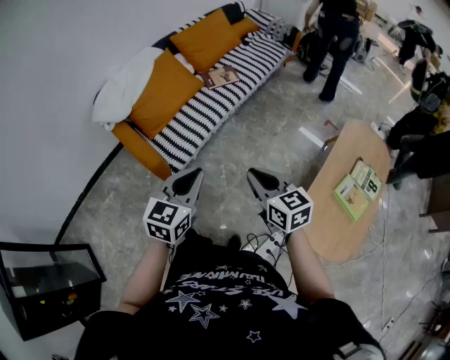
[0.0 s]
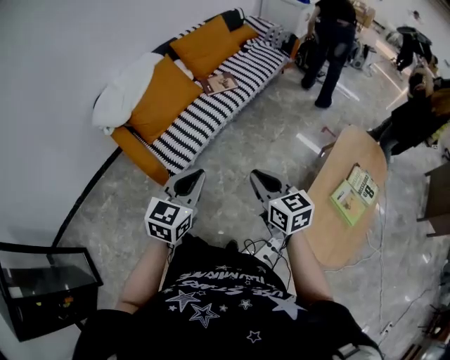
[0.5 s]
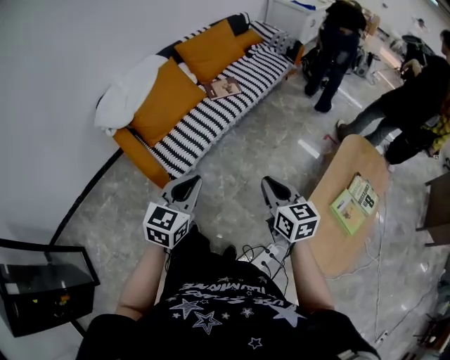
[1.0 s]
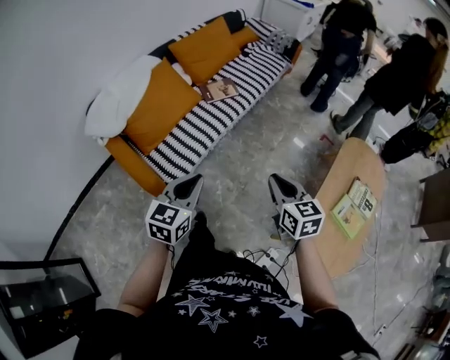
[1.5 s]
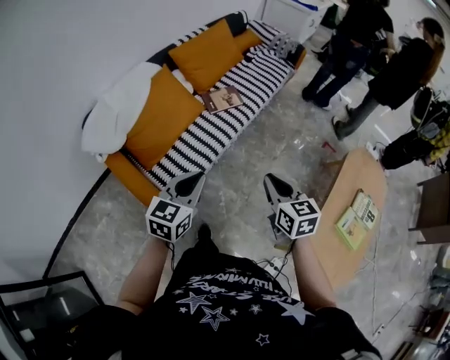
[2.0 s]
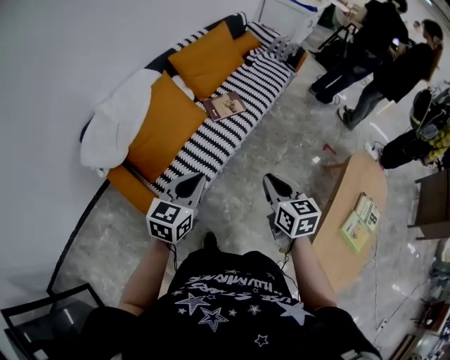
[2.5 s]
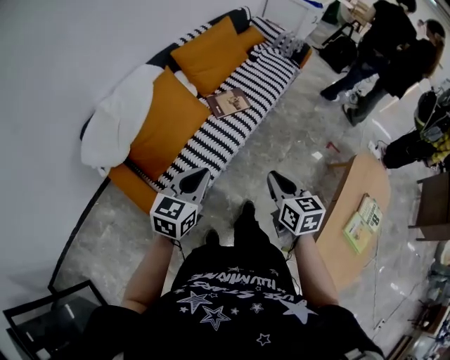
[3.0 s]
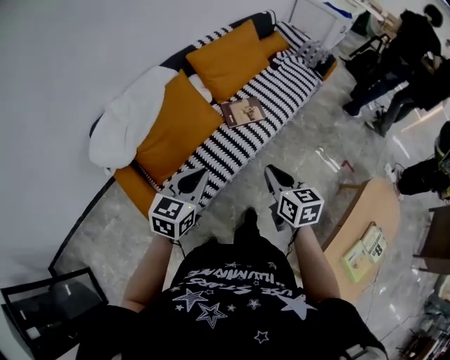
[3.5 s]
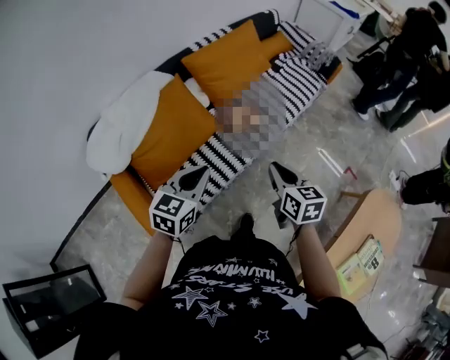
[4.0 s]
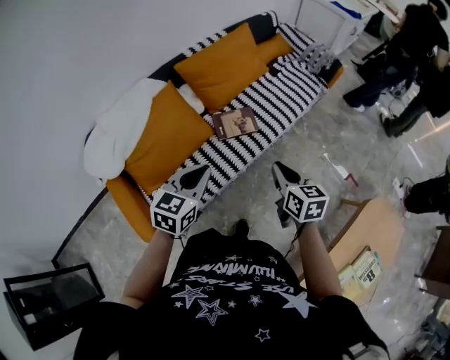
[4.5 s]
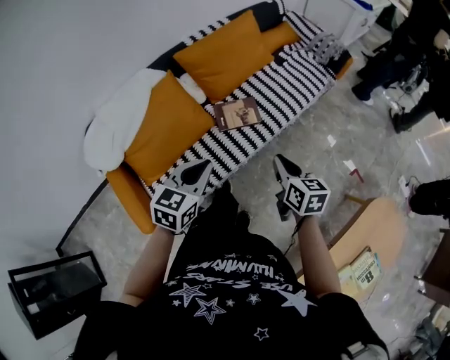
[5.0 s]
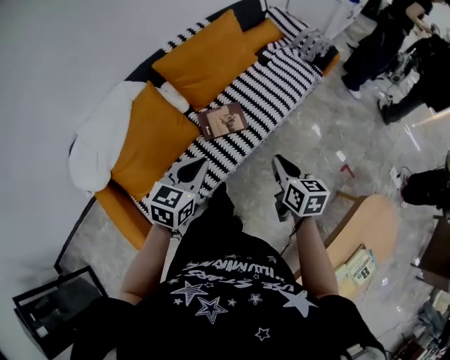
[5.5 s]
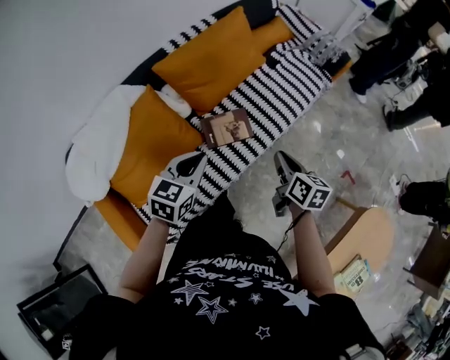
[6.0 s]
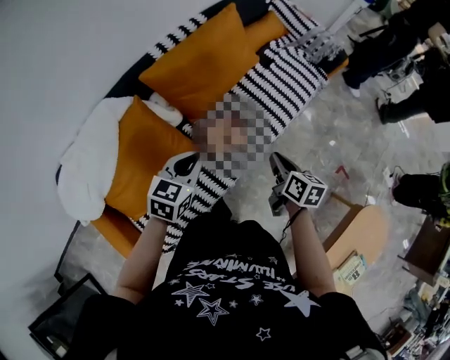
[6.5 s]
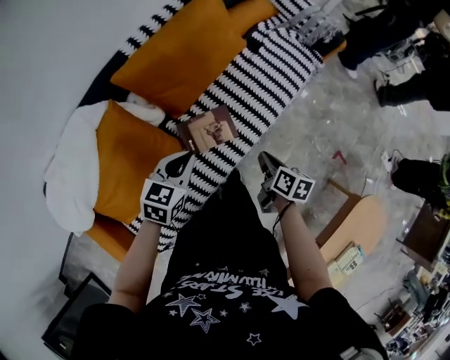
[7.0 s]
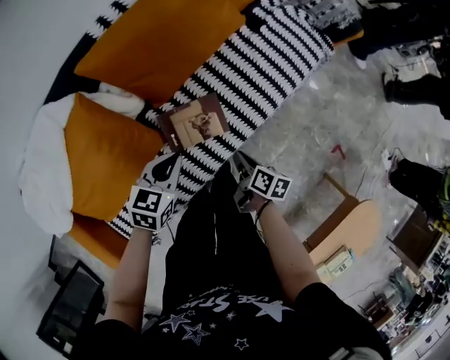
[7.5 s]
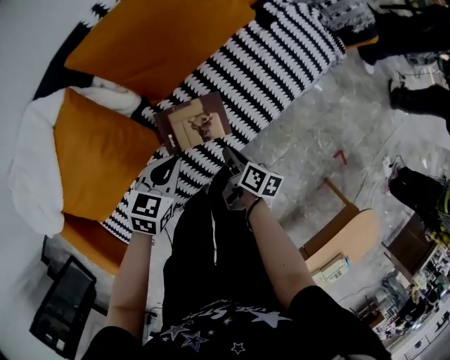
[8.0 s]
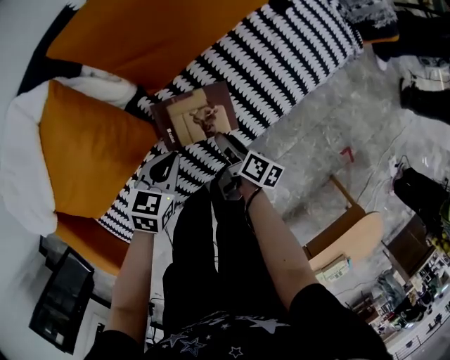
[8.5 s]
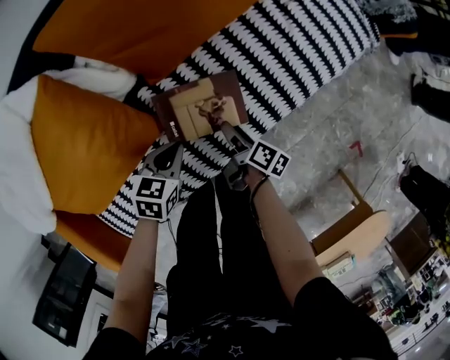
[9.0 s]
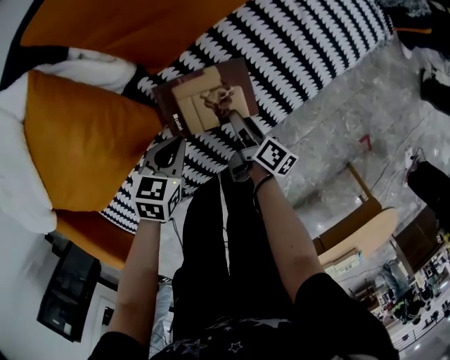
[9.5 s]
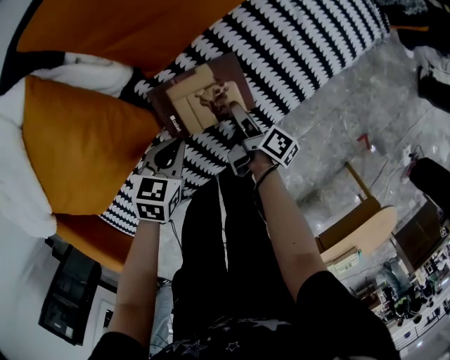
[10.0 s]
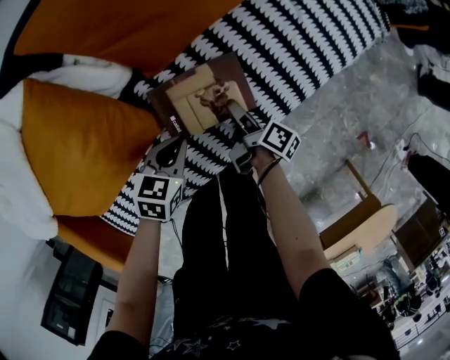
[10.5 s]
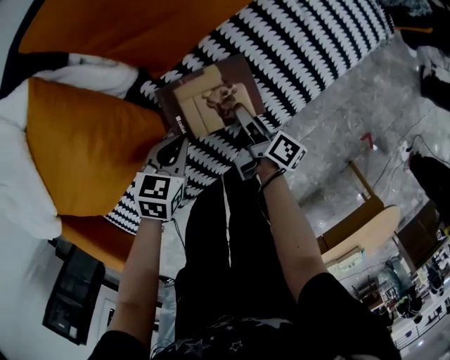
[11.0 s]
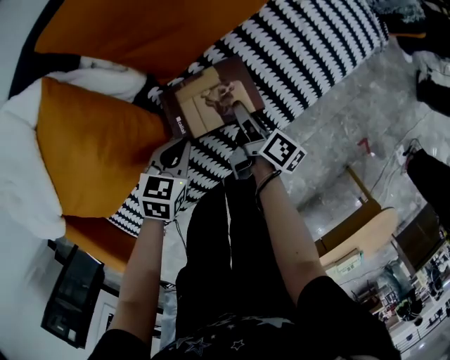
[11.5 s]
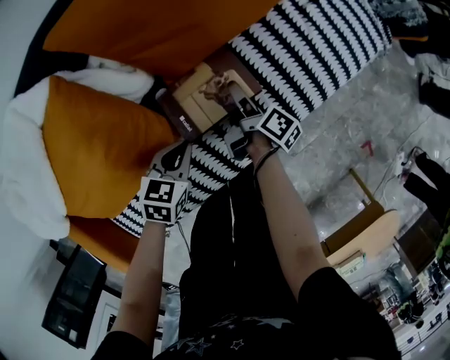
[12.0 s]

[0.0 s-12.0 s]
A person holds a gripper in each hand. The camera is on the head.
0.0 to 2.0 s: Both grippers travel together forward, some 20 cm.
2.0 to 4.0 s: The two grippers go roughly 25 cm forward.
4.0 to 6.0 s: The right gripper shifts some 25 cm forward and to the right, and rotates some 20 degrees. Meanwhile the left gripper shifts some 25 cm forward.
6.0 to 8.0 s: The left gripper moves downward and forward, roughly 25 cm, while the right gripper goes roughly 30 cm downward, and turns by some 30 degrees.
8.0 to 10.0 s: The two grippers go roughly 10 cm downward. The right gripper rotates roughly 20 degrees, and opens its fingers.
10.0 to 12.0 s: The right gripper moves forward and to the left, some 10 cm.

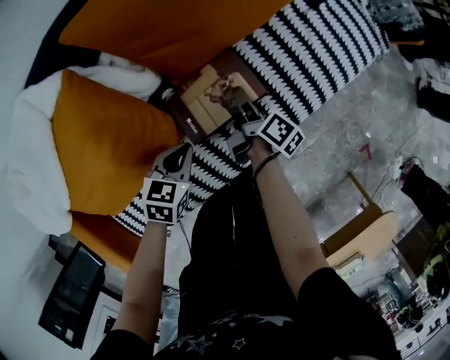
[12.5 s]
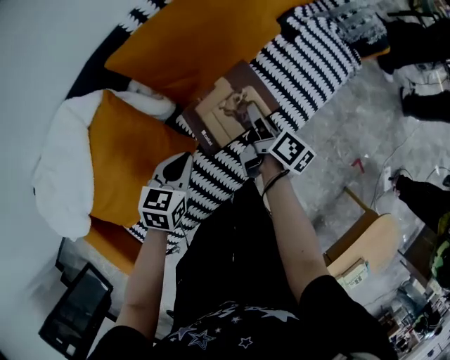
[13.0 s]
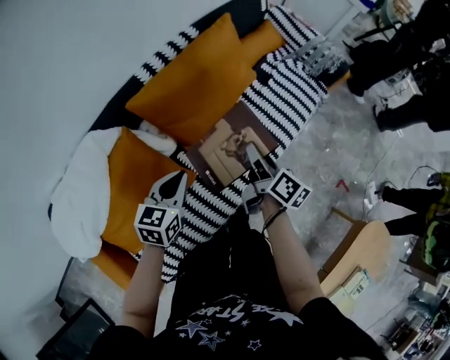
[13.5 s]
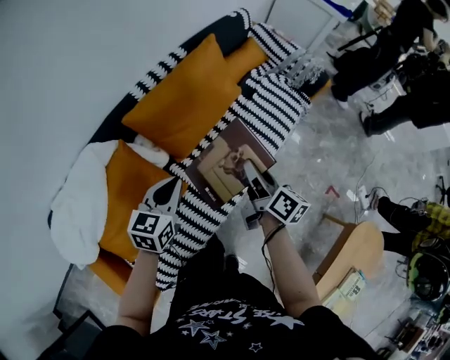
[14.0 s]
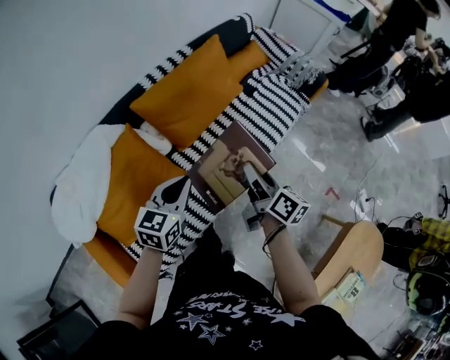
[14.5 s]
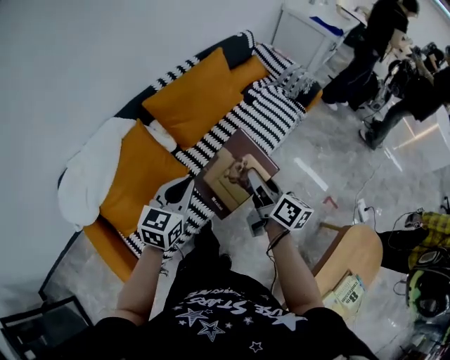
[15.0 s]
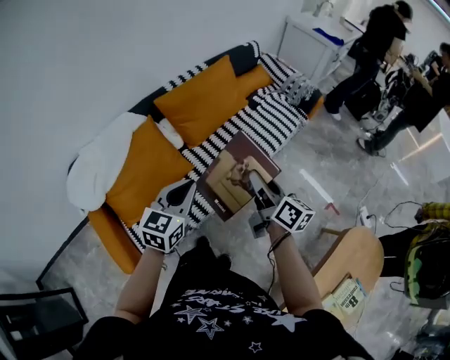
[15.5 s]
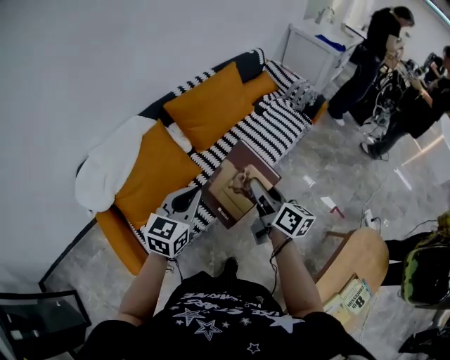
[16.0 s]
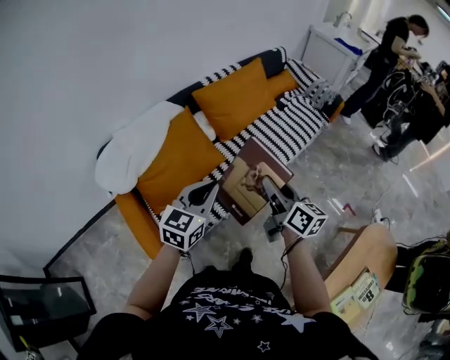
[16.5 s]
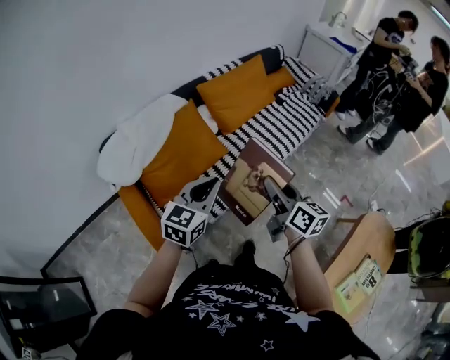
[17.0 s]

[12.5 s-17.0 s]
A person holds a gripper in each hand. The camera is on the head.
12.5 to 14.5 s: Both grippers move upward, approximately 35 cm. The left gripper swivels some 30 degrees. Meanwhile the right gripper swivels about 30 degrees.
14.5 to 17.0 s: Both grippers move backward, about 30 cm. The right gripper changes its angle by roughly 20 degrees.

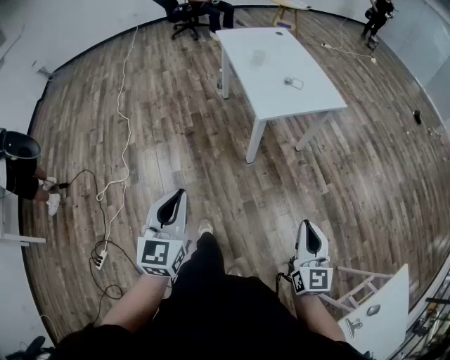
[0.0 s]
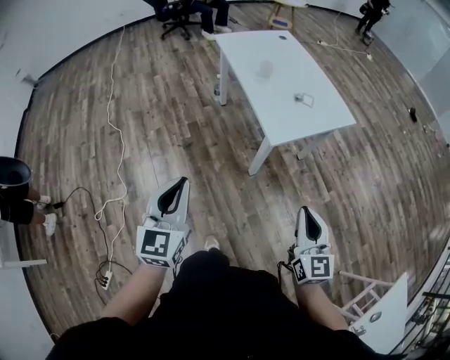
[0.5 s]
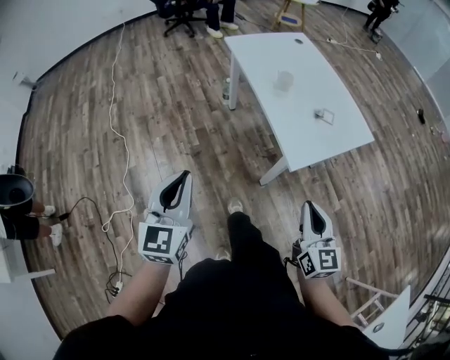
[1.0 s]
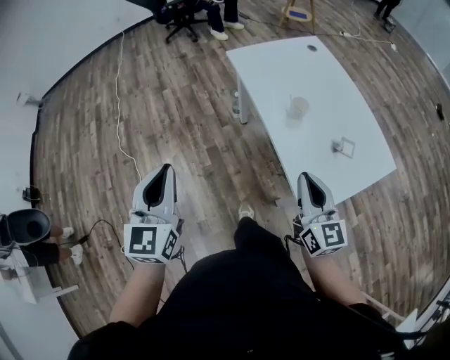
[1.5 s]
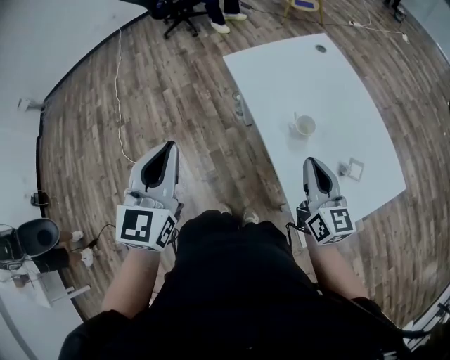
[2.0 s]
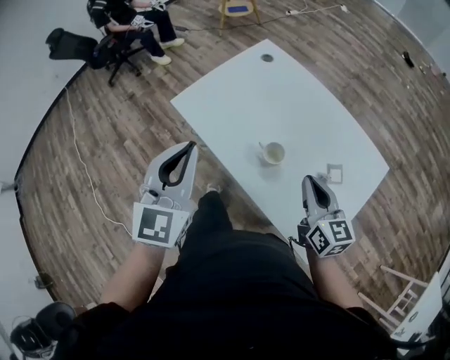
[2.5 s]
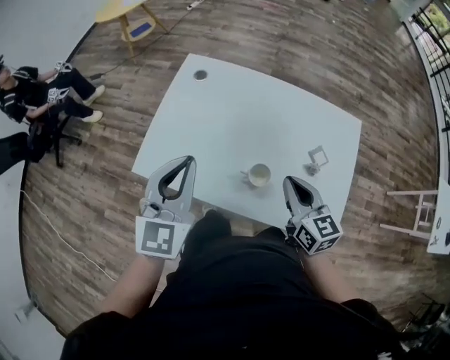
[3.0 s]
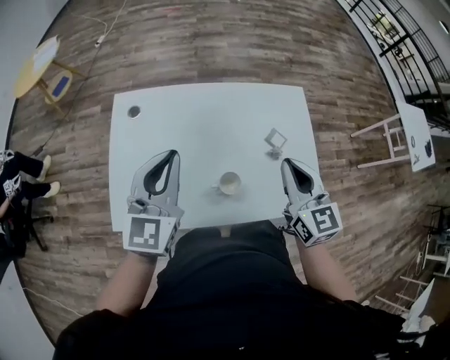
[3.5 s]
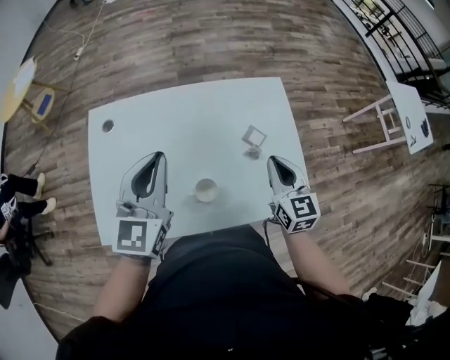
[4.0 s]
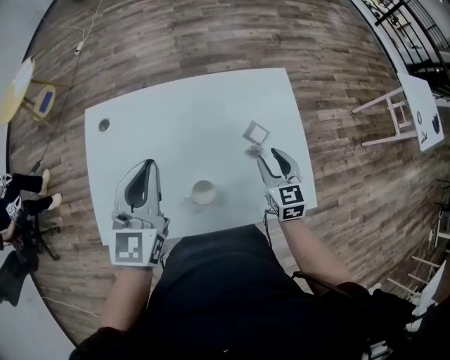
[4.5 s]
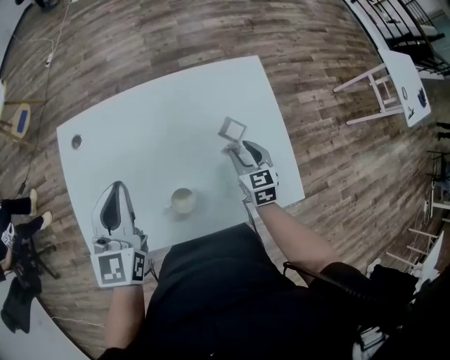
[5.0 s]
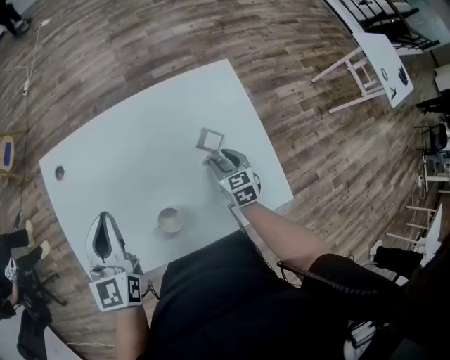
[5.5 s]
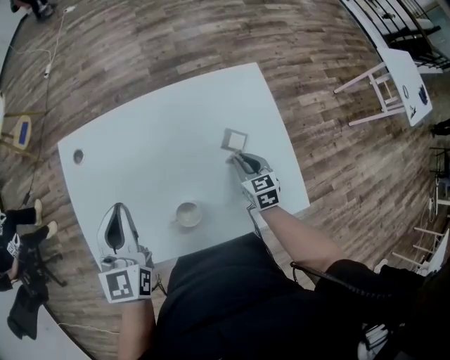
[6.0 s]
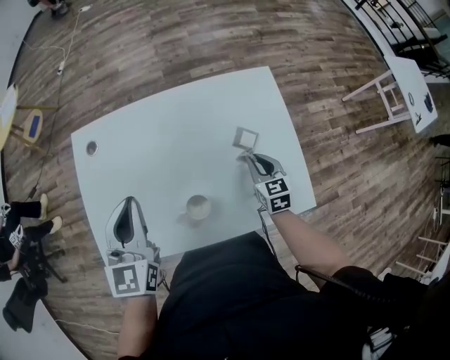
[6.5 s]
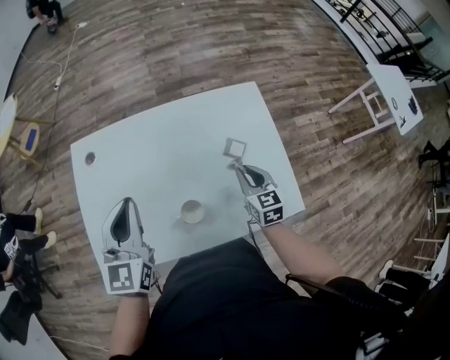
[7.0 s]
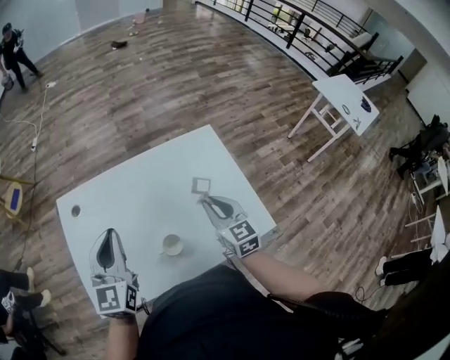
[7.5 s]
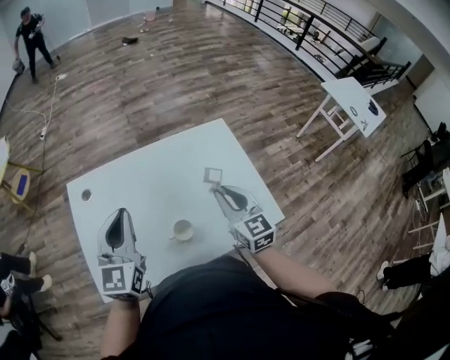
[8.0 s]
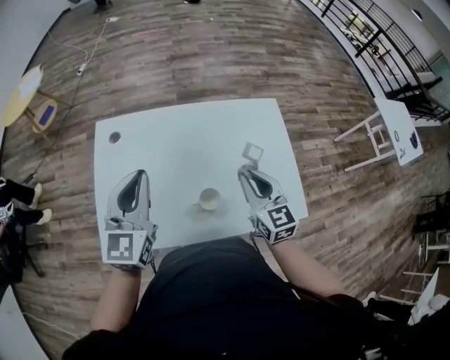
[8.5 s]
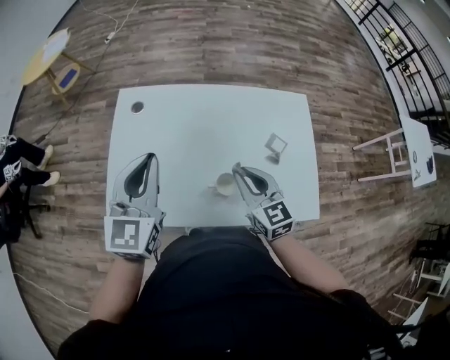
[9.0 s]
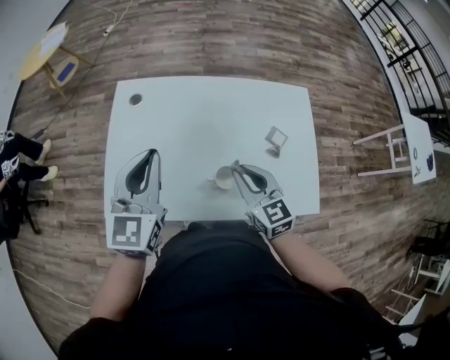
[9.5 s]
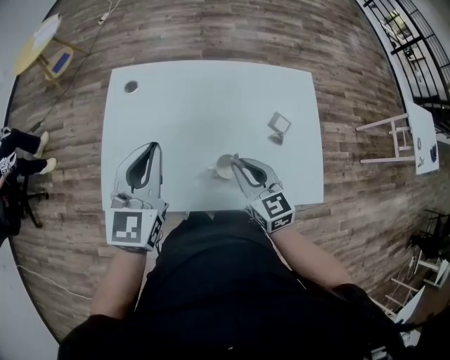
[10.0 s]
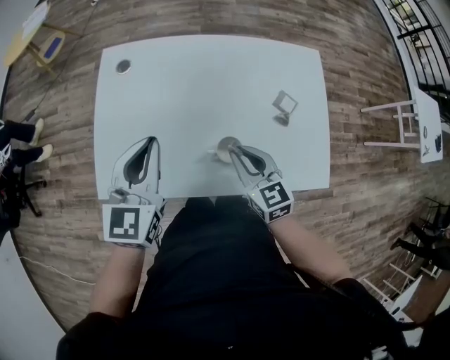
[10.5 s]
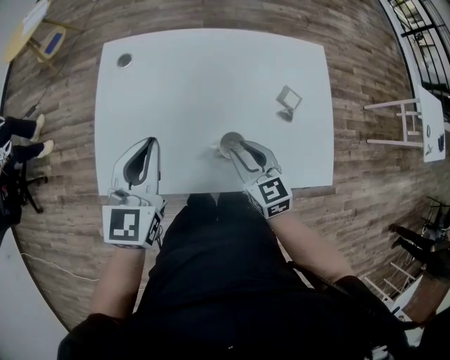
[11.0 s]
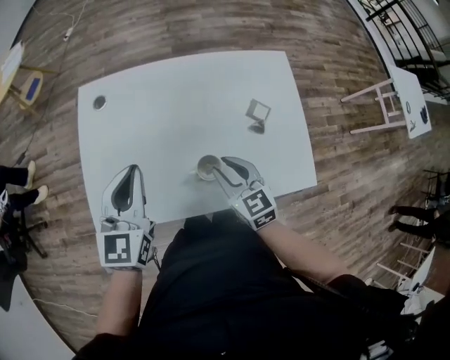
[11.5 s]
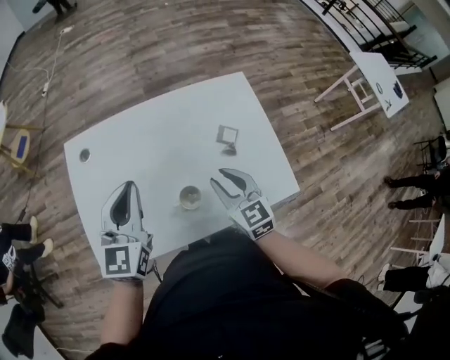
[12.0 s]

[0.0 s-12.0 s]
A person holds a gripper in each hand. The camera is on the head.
0.0 to 2.0 s: The pair of grippers is taken forward, some 60 cm.
2.0 to 4.0 s: The left gripper moves about 40 cm, and turns by about 80 degrees. The right gripper shifts by some 15 cm, and changes its angle by some 70 degrees.
4.0 to 6.0 s: The left gripper travels downward by roughly 5 cm. Meanwhile the right gripper heads downward, covering about 20 cm, swivels about 20 degrees, and opens and closes again.
6.0 to 8.0 s: The left gripper heads upward, covering approximately 5 cm. Meanwhile the right gripper moves upward, some 20 cm, and turns by roughly 30 degrees.
8.0 to 10.0 s: The left gripper moves to the left, approximately 5 cm, while the right gripper shifts some 15 cm to the left and downward, and swivels roughly 30 degrees.
10.0 to 12.0 s: The two grippers go some 5 cm to the right.
